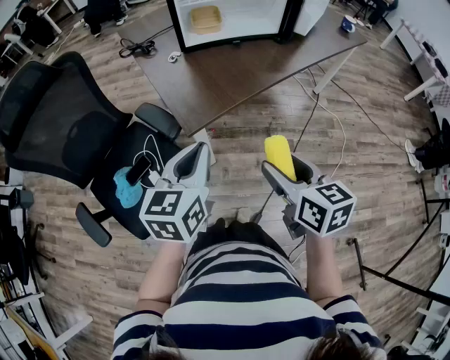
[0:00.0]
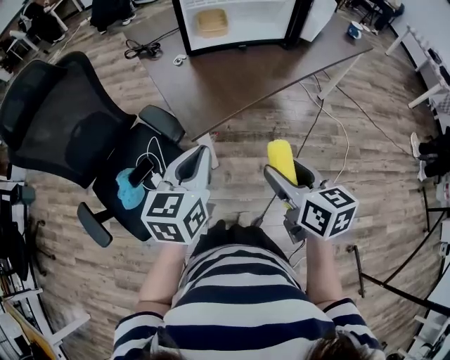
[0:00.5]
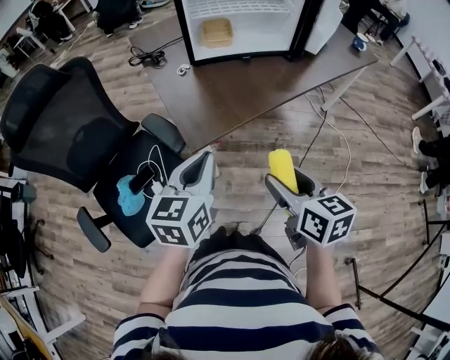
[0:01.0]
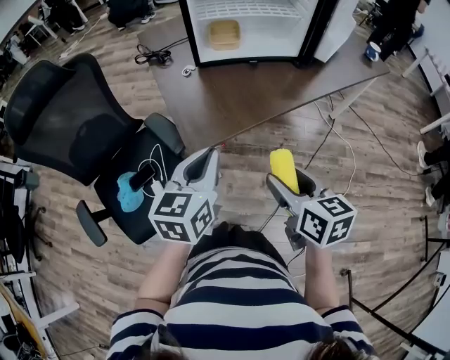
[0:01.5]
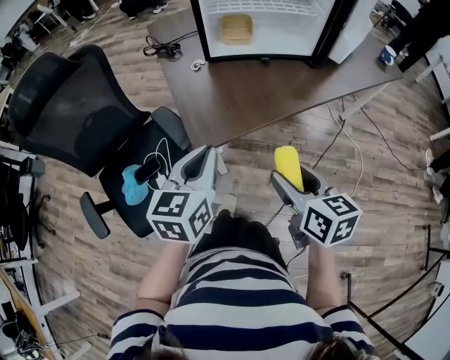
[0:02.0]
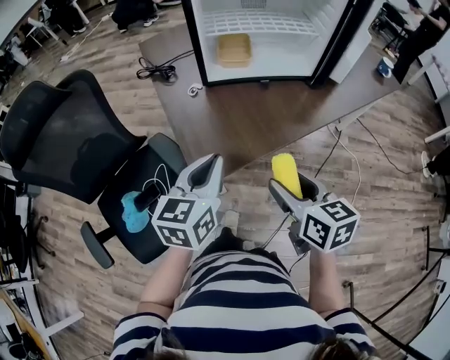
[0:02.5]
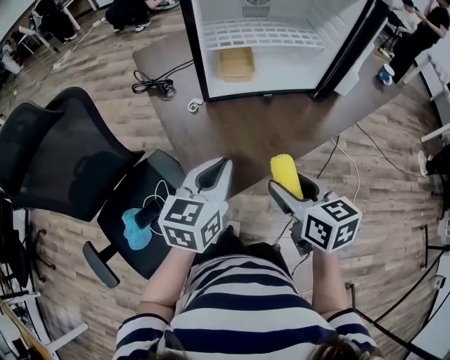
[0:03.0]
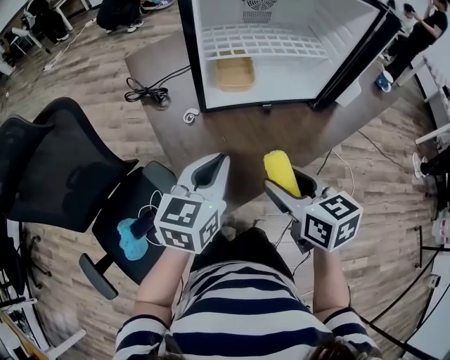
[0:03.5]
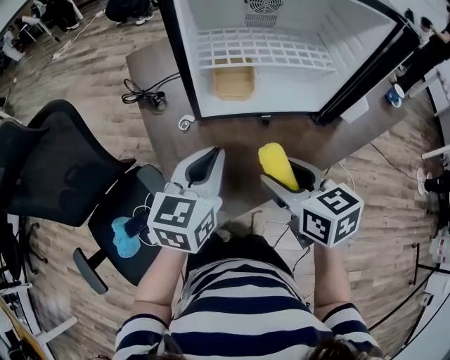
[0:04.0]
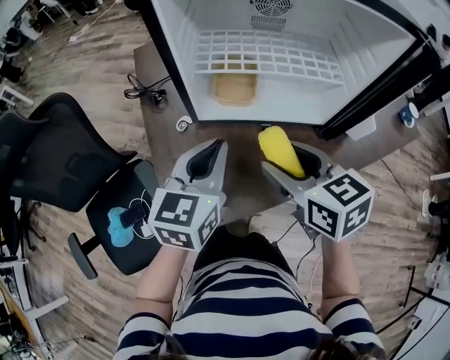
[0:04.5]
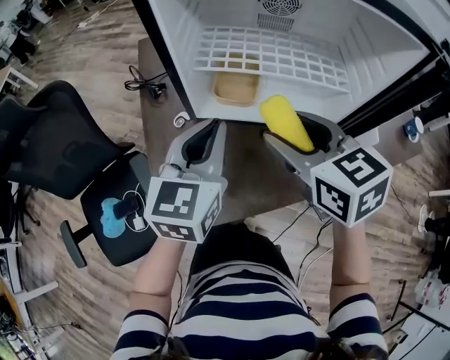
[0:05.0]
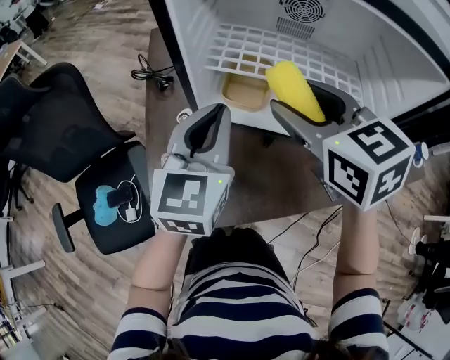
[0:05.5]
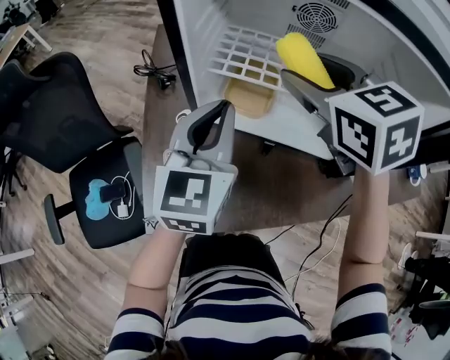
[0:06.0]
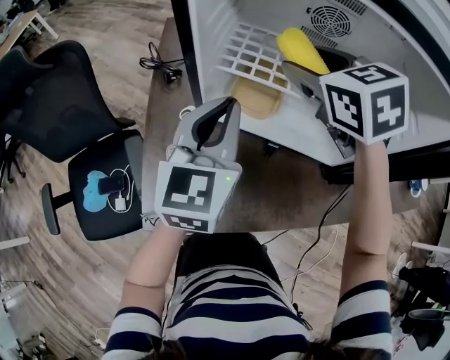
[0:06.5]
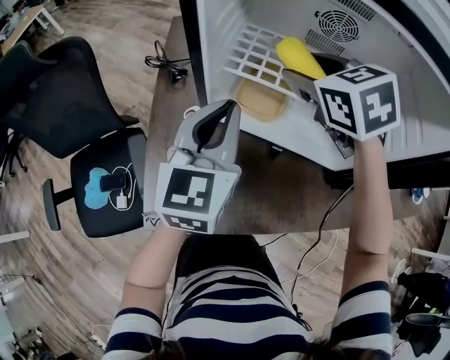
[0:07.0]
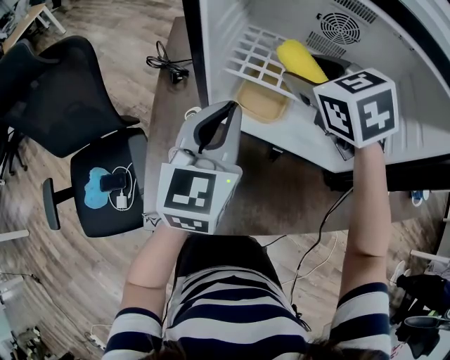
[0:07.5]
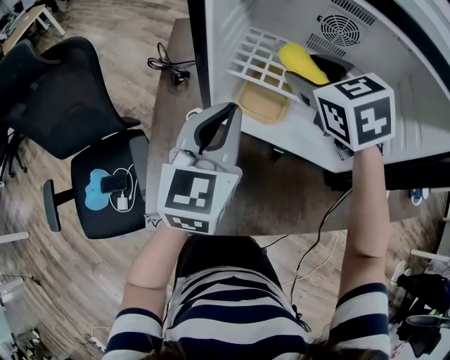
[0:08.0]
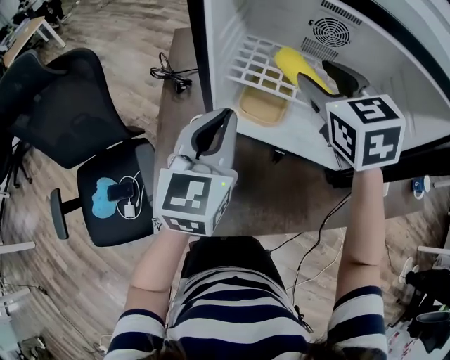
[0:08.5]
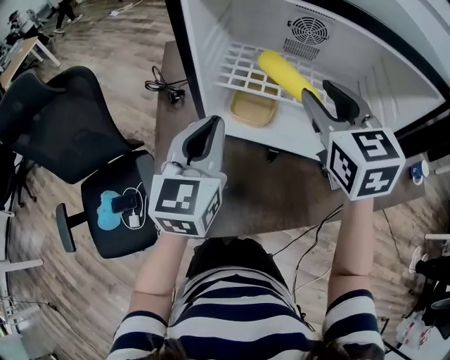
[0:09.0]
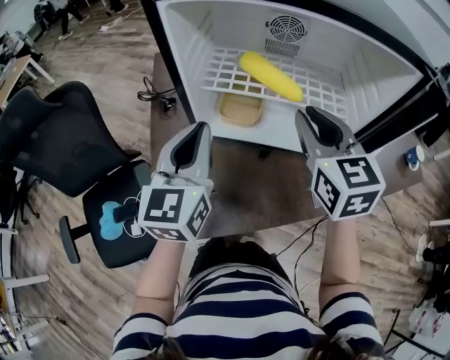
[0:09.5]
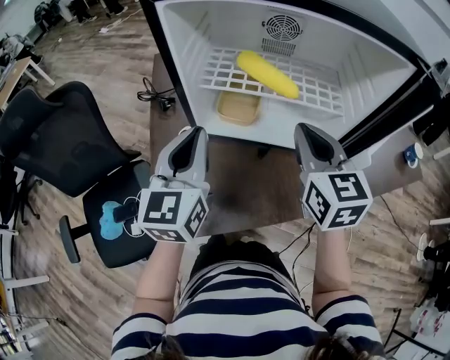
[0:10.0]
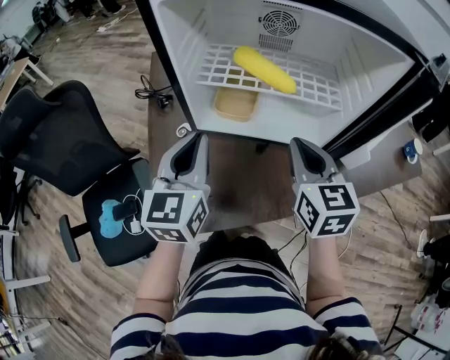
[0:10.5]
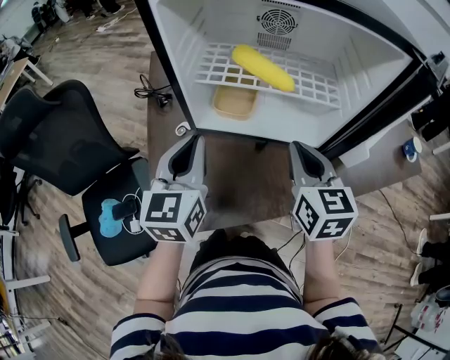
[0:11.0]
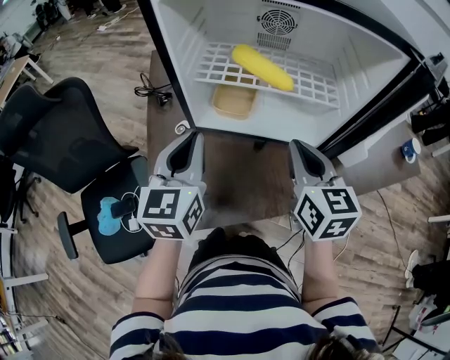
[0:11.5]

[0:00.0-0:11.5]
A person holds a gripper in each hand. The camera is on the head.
0:00.0 to 0:02.0: The two grippers go about 10 cm forward.
0:02.0 to 0:04.0: Both grippers move forward, about 25 cm.
0:04.0 to 0:06.0: The right gripper moves forward and upward, roughly 25 cm, and swivels approximately 30 degrees. The left gripper is displaced forward and to the right by roughly 15 cm, and turns by some 30 degrees.
0:06.0 to 0:07.5: The right gripper shifts about 10 cm downward and forward.
0:07.5 to 0:09.5: The left gripper changes place by some 5 cm; the right gripper travels backward and to the right by approximately 15 cm, changes its angle by roughly 30 degrees, and closes up.
0:09.5 to 0:11.5: The right gripper is displaced downward and backward by about 10 cm.

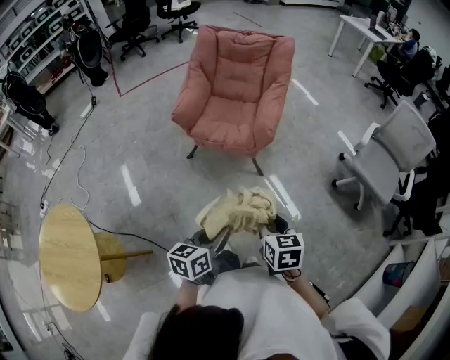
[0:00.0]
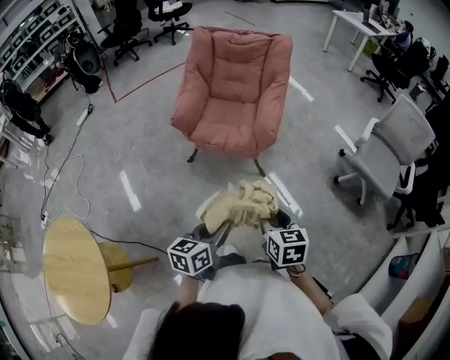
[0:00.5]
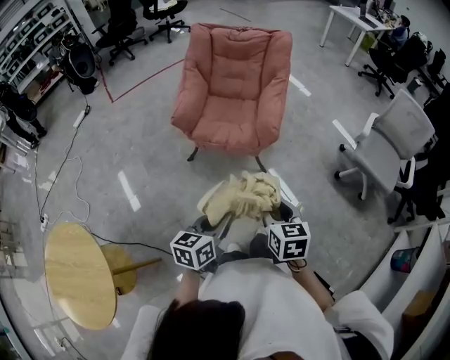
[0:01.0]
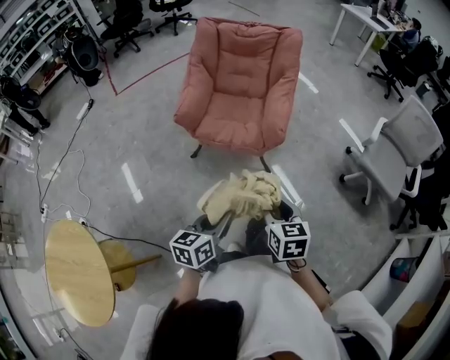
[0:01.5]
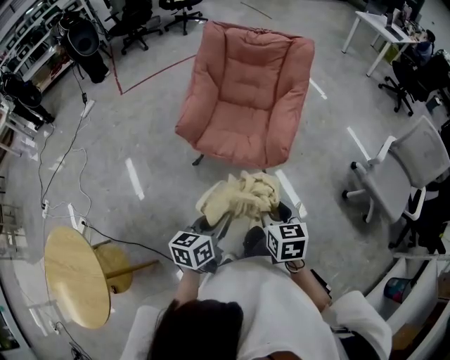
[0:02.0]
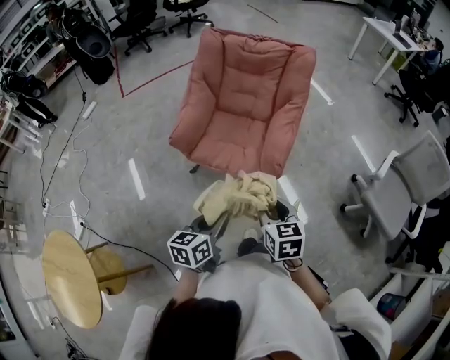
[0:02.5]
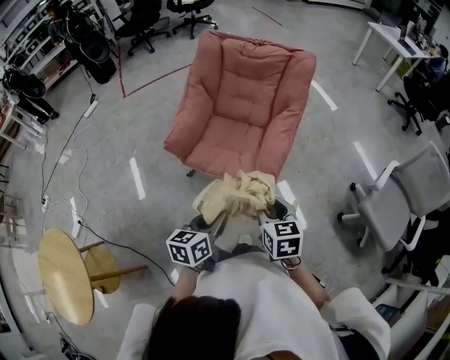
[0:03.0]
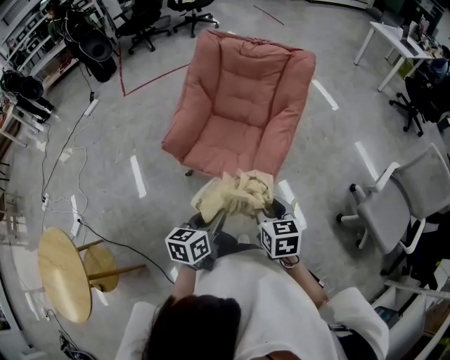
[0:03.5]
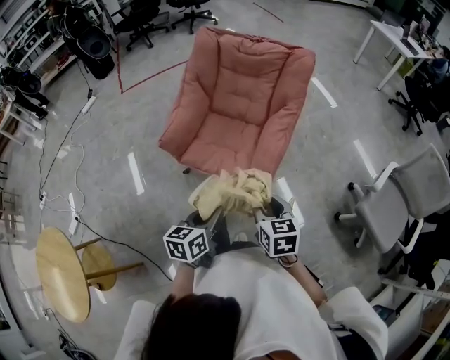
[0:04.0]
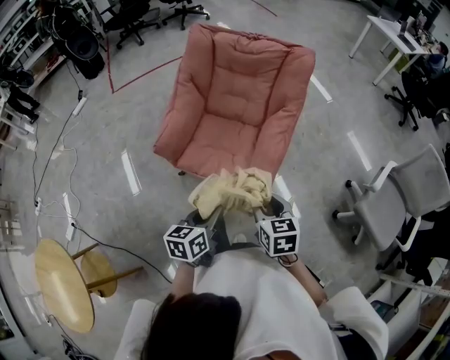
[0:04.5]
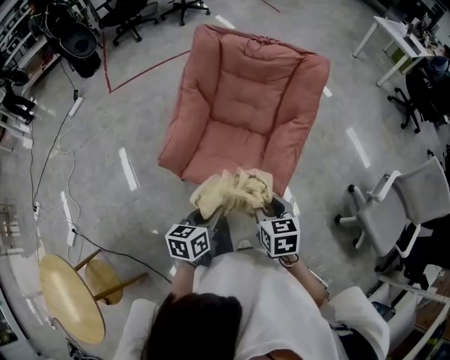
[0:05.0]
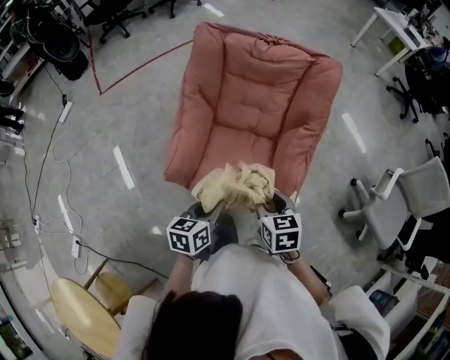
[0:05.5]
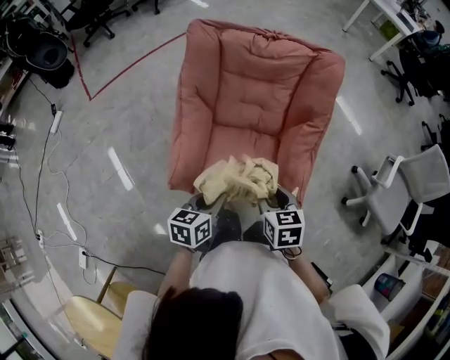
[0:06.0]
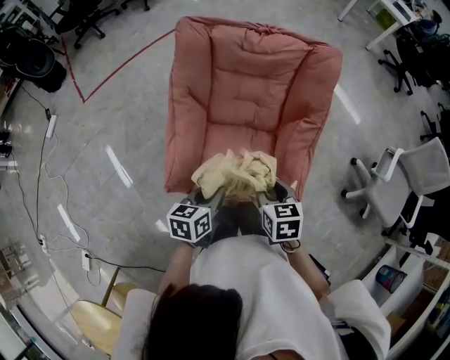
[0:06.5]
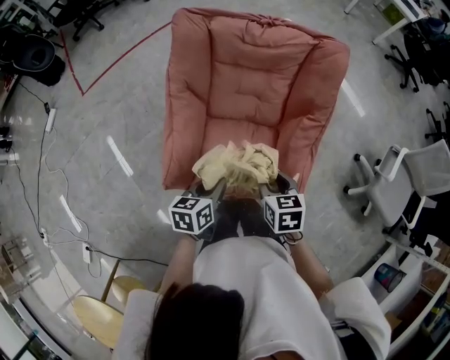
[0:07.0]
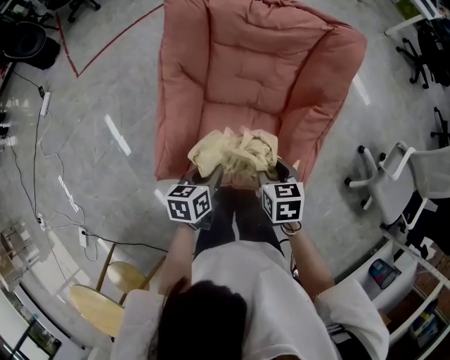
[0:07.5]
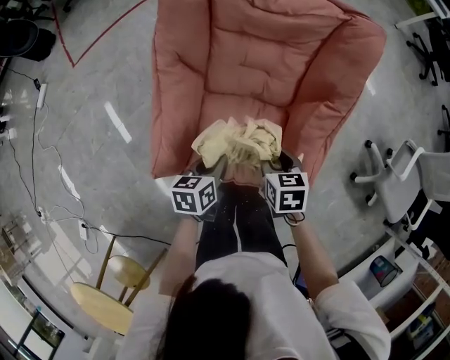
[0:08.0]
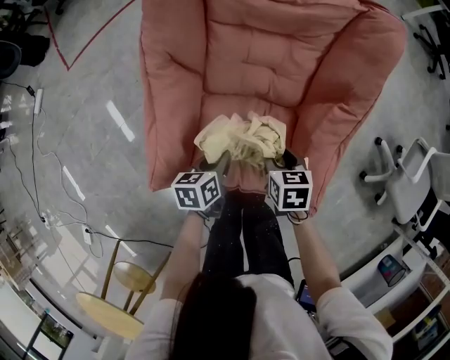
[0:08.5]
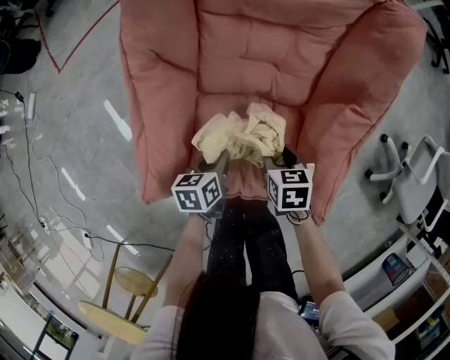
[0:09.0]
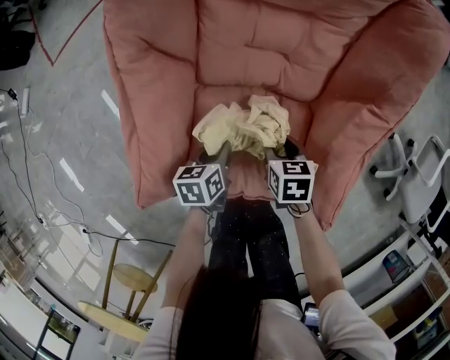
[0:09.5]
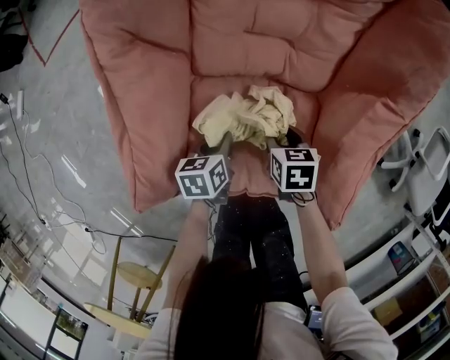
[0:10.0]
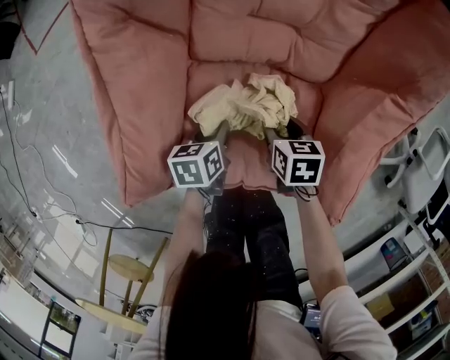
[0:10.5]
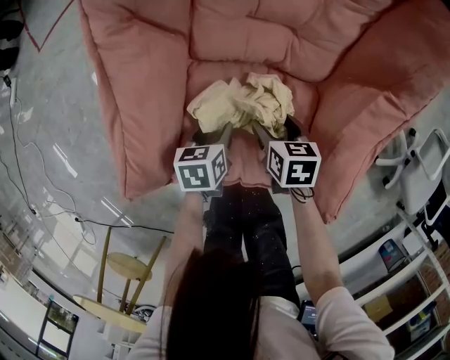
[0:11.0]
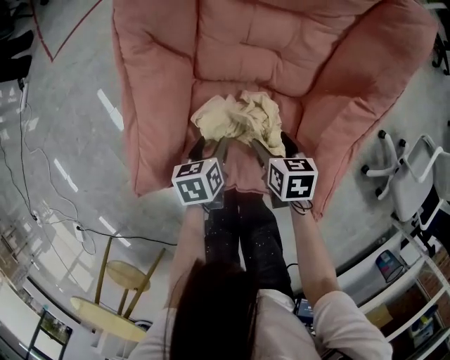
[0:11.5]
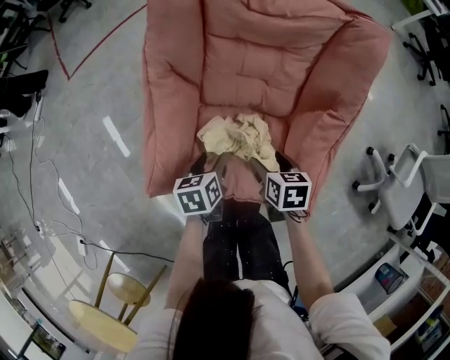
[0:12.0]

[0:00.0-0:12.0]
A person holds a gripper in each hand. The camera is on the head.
0:00.0 to 0:02.0: The two grippers go about 20 cm forward.
0:02.0 to 0:04.0: The grippers both shift forward and to the right by approximately 15 cm.
0:04.0 to 0:06.0: The grippers both shift forward and to the left by about 30 cm.
0:06.0 to 0:08.0: Both grippers move downward and forward, approximately 20 cm.
0:08.0 to 0:10.0: The two grippers go about 20 cm downward.
0:10.0 to 0:12.0: Both grippers move upward, some 15 cm. The right gripper opens up. The left gripper opens its fingers.

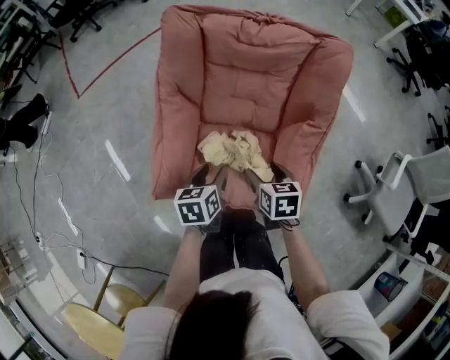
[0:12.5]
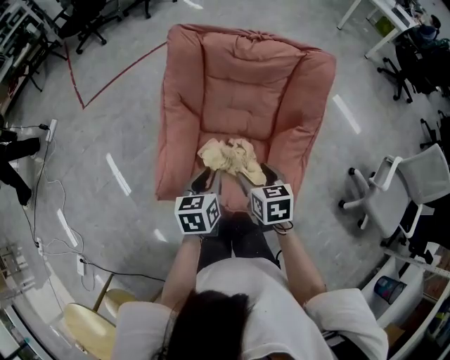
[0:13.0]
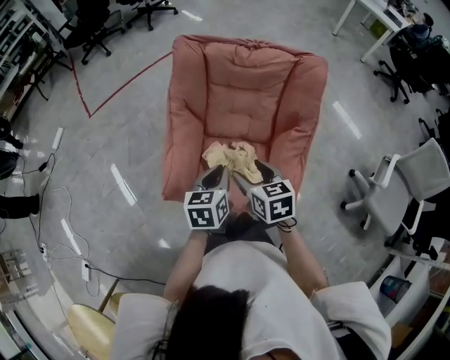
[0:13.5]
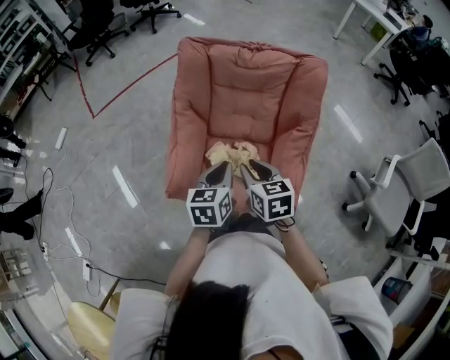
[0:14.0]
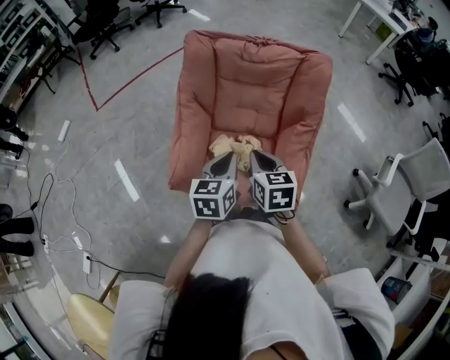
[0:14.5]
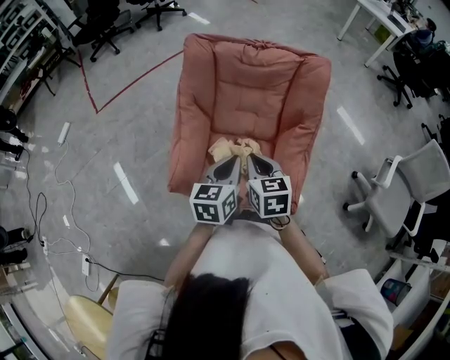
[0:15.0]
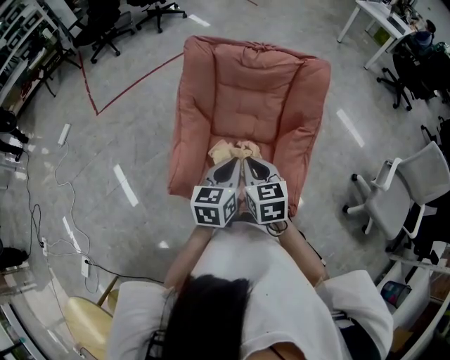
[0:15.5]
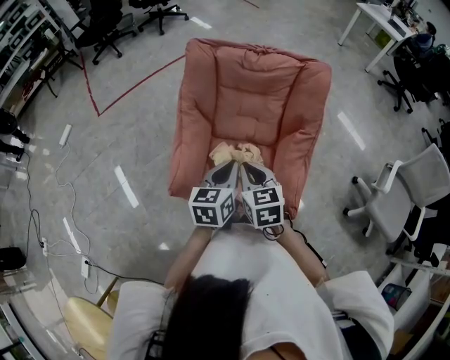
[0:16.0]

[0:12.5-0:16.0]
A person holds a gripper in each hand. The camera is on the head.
0:12.5 to 0:14.5: The two grippers go about 15 cm upward. The right gripper closes. The left gripper swivels approximately 20 degrees, and closes.
0:14.5 to 0:16.0: The grippers stay close to where they were, moving slightly.
